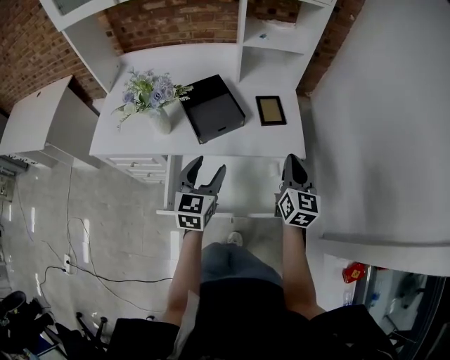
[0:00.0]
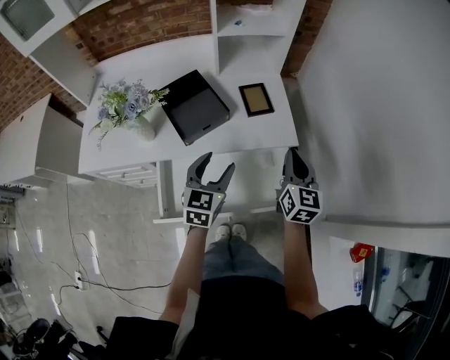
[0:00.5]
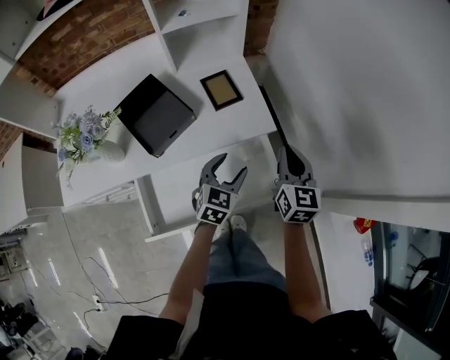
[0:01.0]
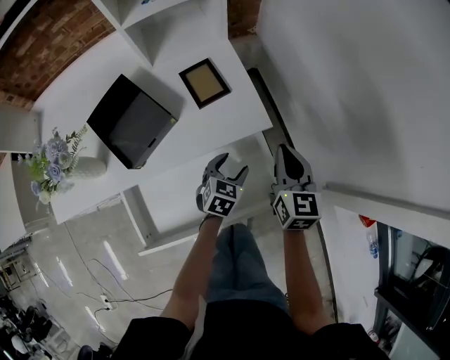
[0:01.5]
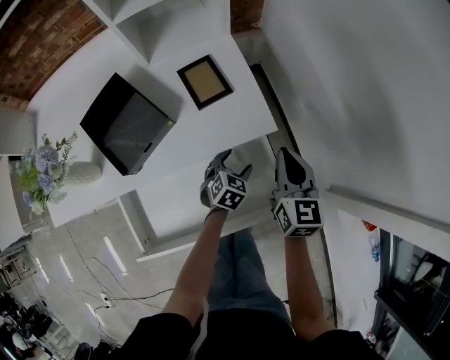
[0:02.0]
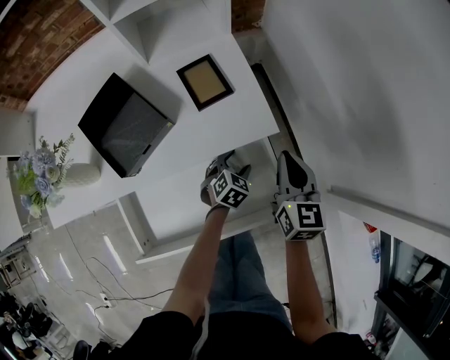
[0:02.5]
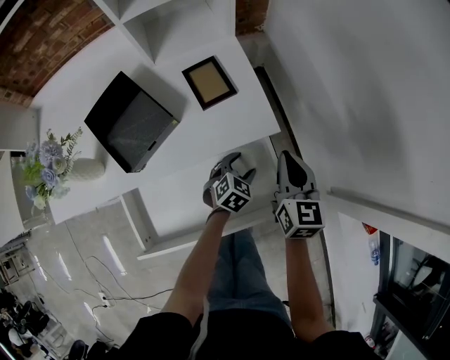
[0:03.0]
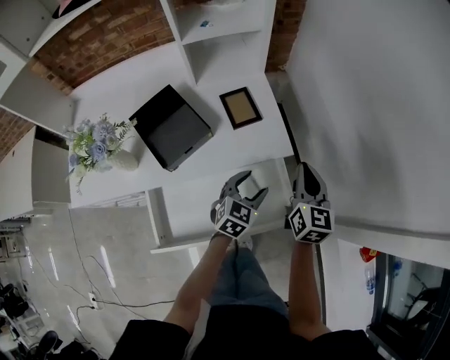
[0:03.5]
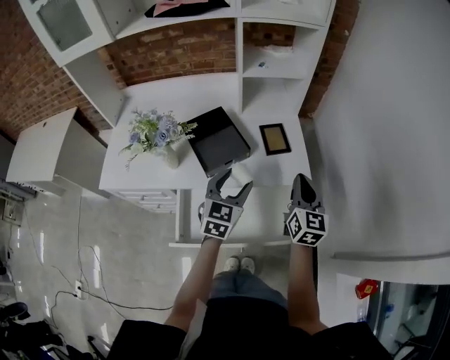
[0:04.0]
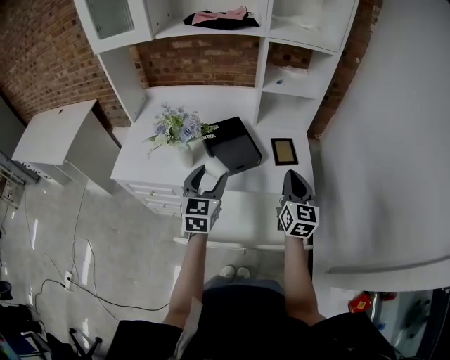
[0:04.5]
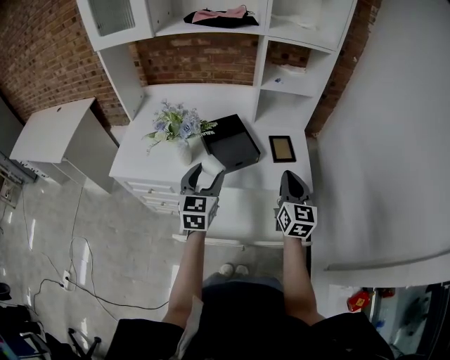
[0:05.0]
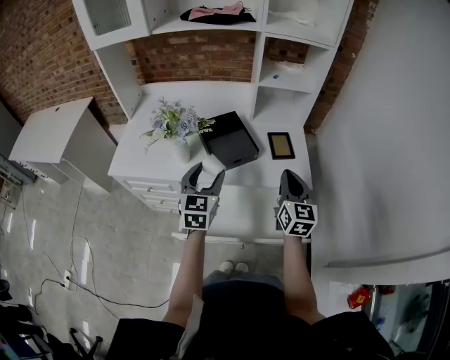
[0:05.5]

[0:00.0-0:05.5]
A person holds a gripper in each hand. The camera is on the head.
0:00.0 to 0:02.0: The right gripper shifts approximately 15 cm downward, to the right and forward. Meanwhile the left gripper heads downward, to the right and forward, covering about 35 cm, and tips its fingers downward by some 30 degrees.
0:02.0 to 0:03.5: The left gripper moves upward, roughly 15 cm. The right gripper heads upward, covering about 5 cm.
0:03.5 to 0:05.5: The left gripper moves roughly 35 cm, and swivels roughly 40 degrees, while the right gripper ends up roughly 20 cm from where it was, and changes its angle by about 20 degrees.

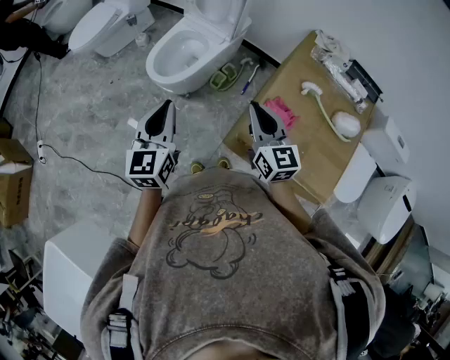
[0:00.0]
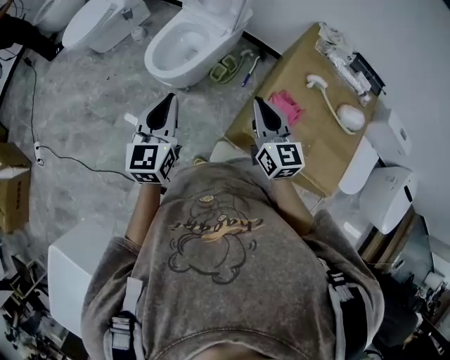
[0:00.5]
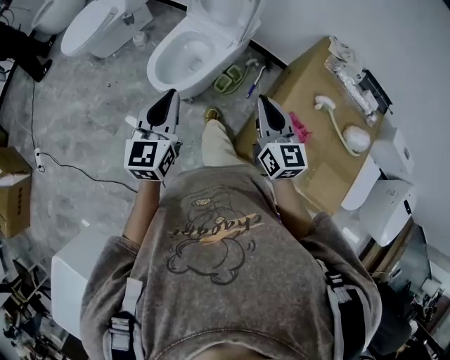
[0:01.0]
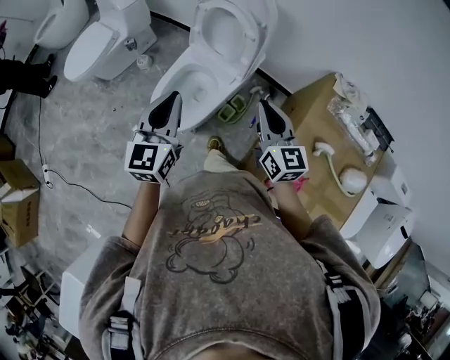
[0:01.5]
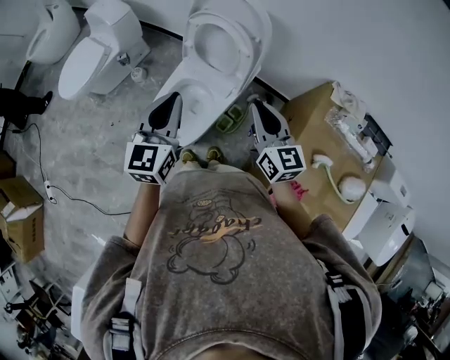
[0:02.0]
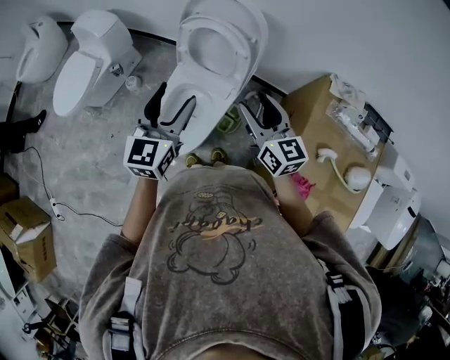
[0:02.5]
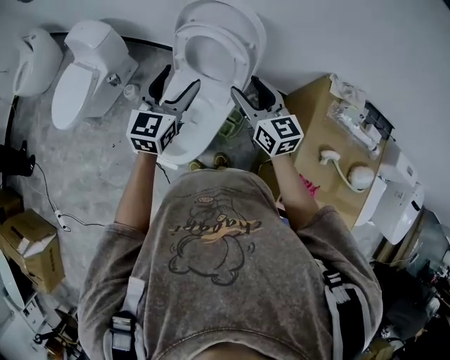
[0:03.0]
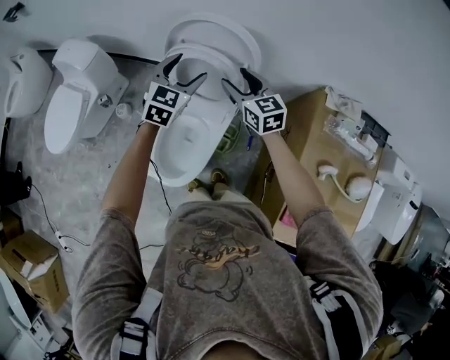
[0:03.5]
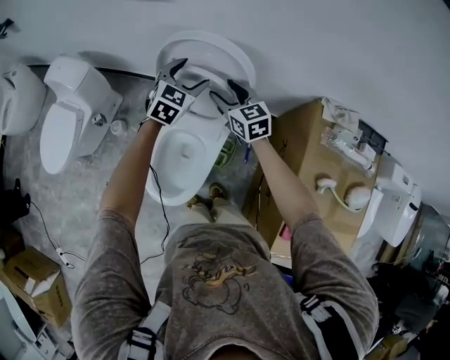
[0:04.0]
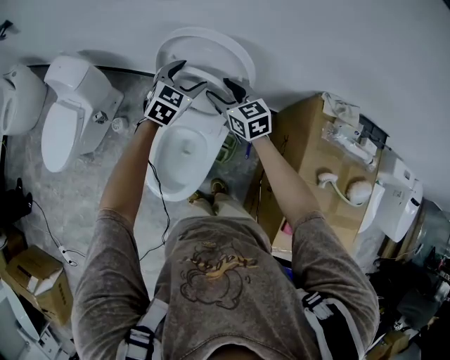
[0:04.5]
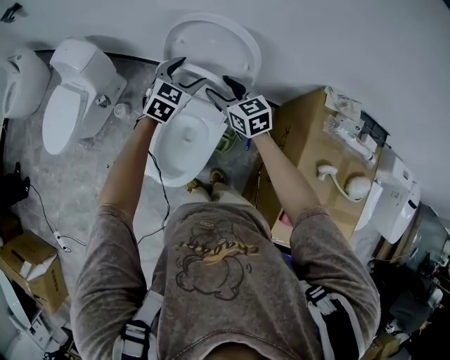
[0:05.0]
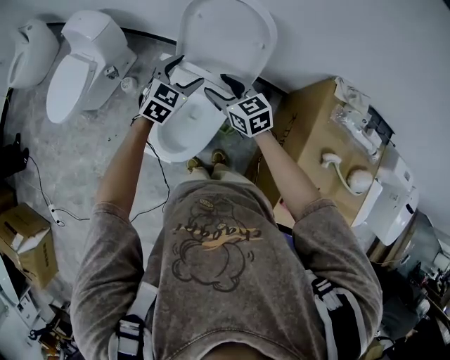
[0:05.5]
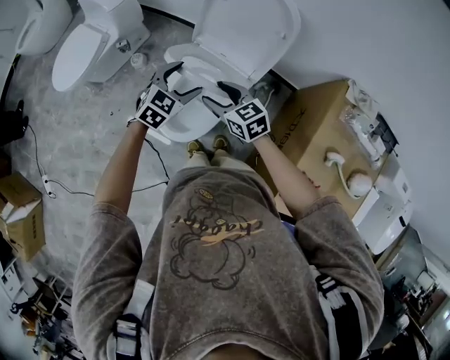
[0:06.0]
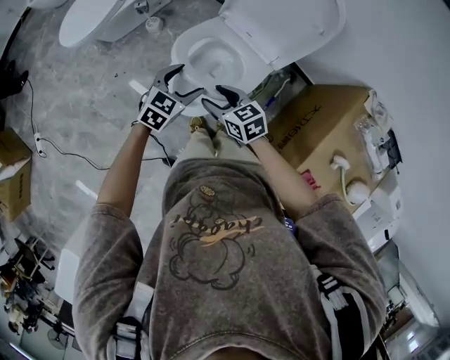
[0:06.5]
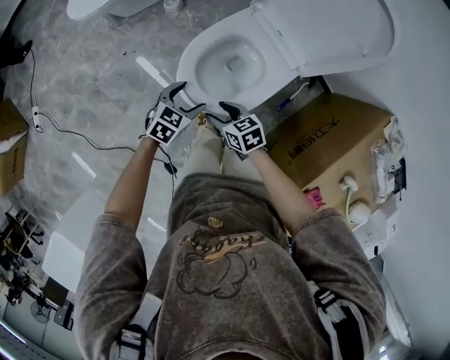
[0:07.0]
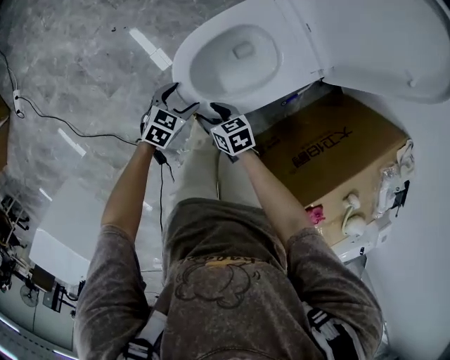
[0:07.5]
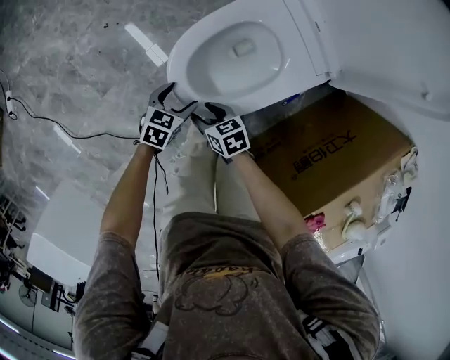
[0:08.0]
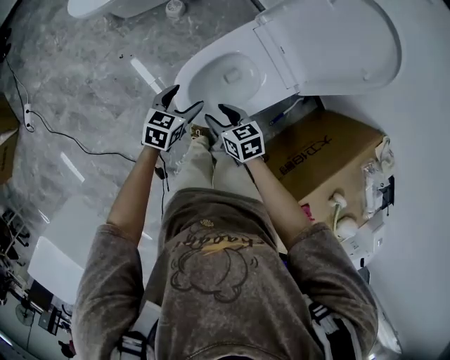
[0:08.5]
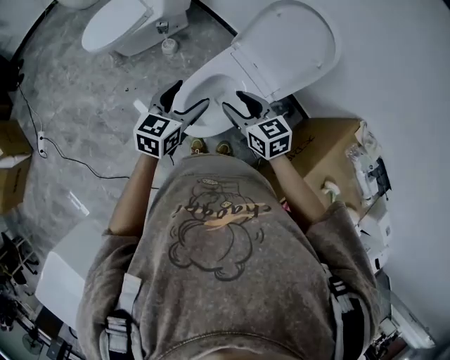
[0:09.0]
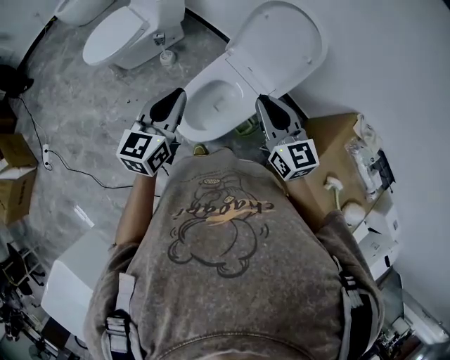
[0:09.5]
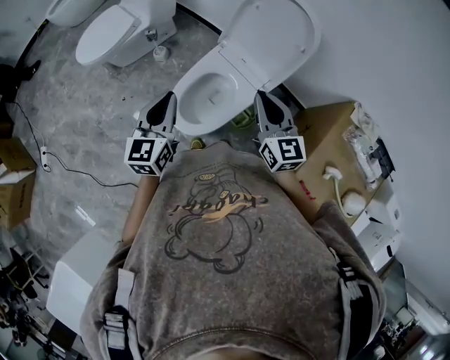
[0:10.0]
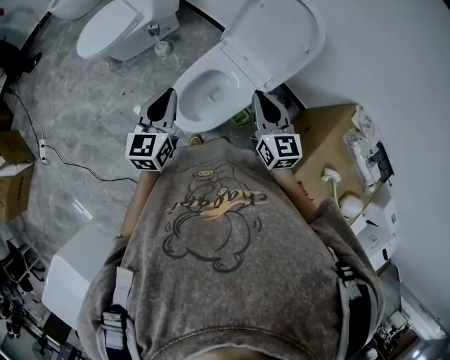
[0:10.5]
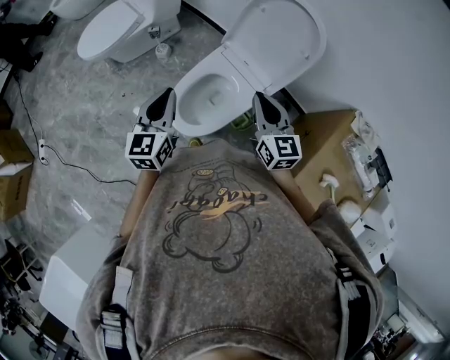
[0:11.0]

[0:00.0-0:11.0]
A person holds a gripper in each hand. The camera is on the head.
0:00.0 to 0:02.0: Both grippers travel together forward, some 40 cm.
0:02.0 to 0:03.5: The two grippers go some 25 cm forward. The right gripper opens up. The left gripper turns by roughly 30 degrees, and opens.
0:03.5 to 0:05.5: The right gripper travels backward and to the left by some 15 cm, while the left gripper travels backward and downward by roughly 10 cm.
0:05.5 to 0:07.5: Both grippers travel together downward, approximately 35 cm. The right gripper turns by some 50 degrees. The left gripper rotates around the line of its fingers by roughly 40 degrees, counterclockwise from behind.
0:07.5 to 0:09.0: Both grippers travel together upward, roughly 40 cm. The left gripper tilts its fingers roughly 30 degrees upward, while the right gripper swivels some 40 degrees.
0:09.0 to 0:11.0: The left gripper closes up. The right gripper travels to the right and upward by some 10 cm, swivels approximately 30 degrees, and closes up.

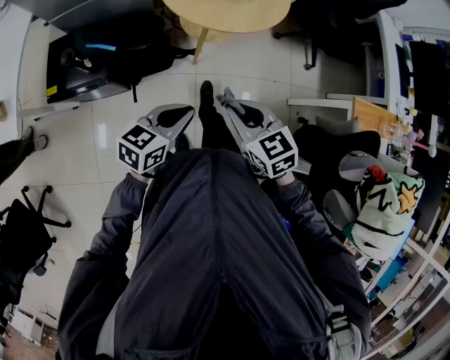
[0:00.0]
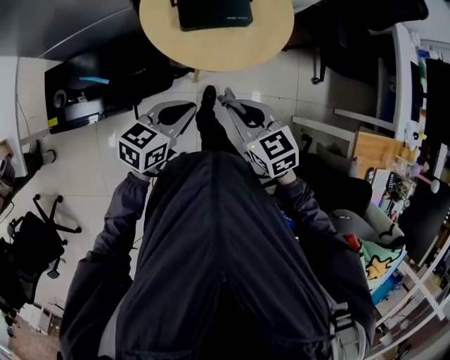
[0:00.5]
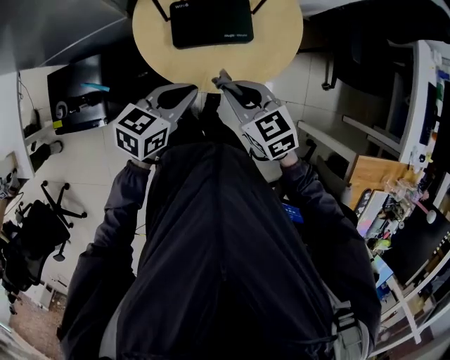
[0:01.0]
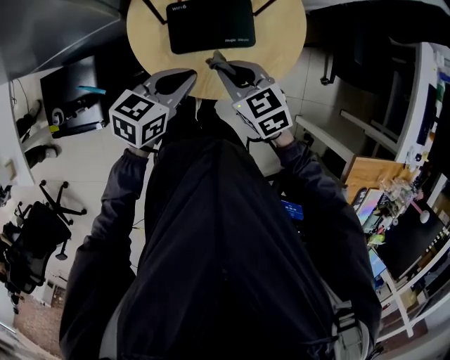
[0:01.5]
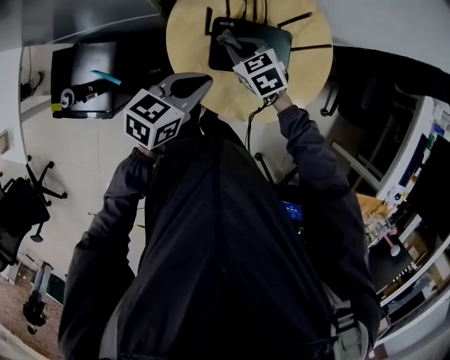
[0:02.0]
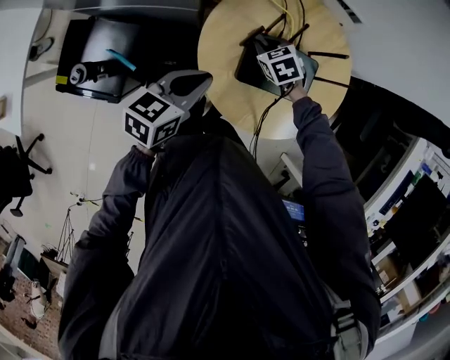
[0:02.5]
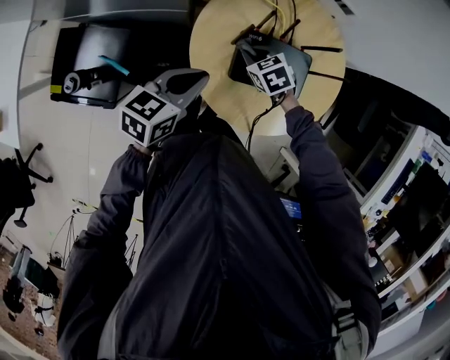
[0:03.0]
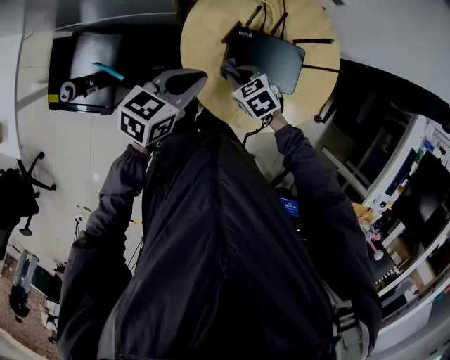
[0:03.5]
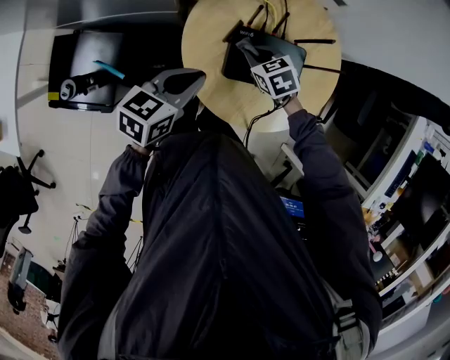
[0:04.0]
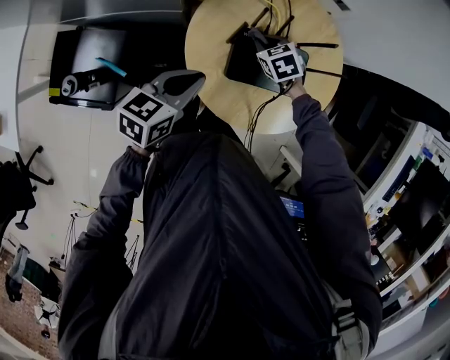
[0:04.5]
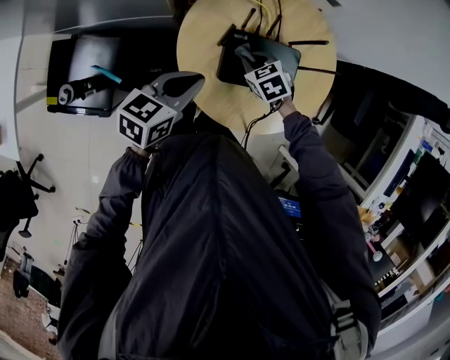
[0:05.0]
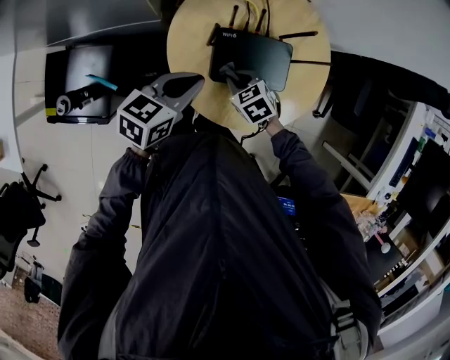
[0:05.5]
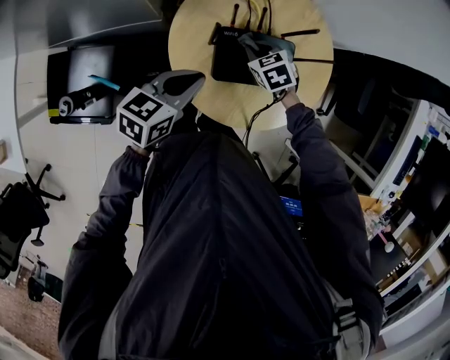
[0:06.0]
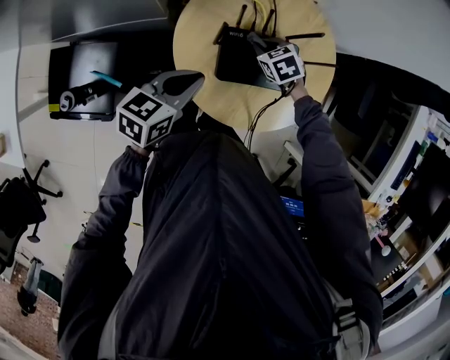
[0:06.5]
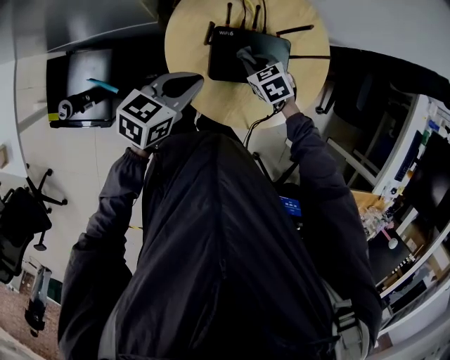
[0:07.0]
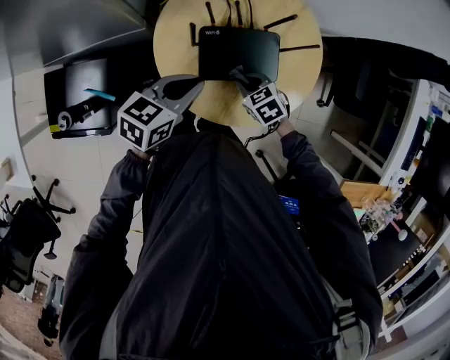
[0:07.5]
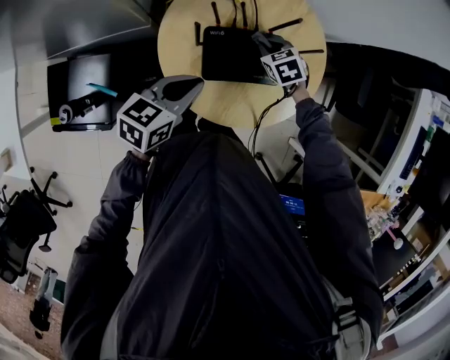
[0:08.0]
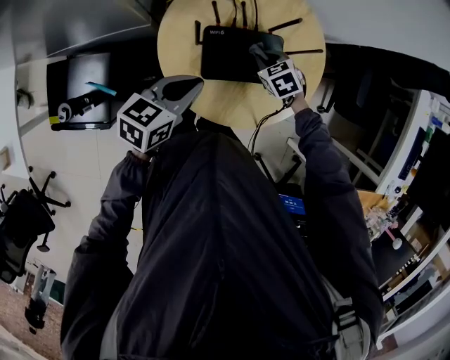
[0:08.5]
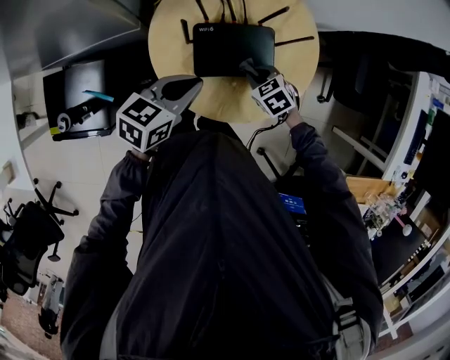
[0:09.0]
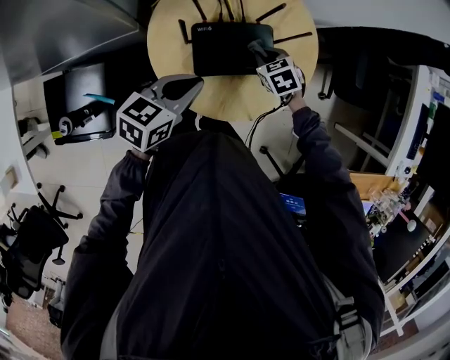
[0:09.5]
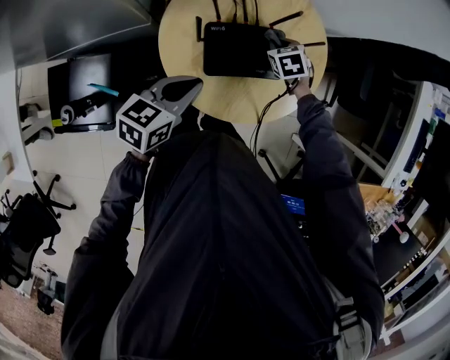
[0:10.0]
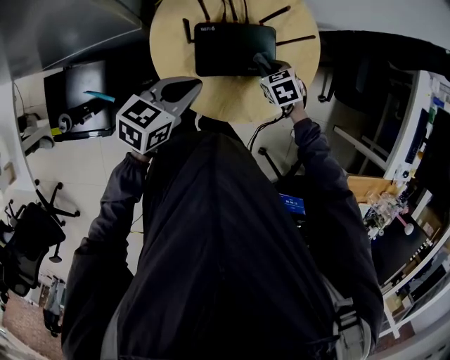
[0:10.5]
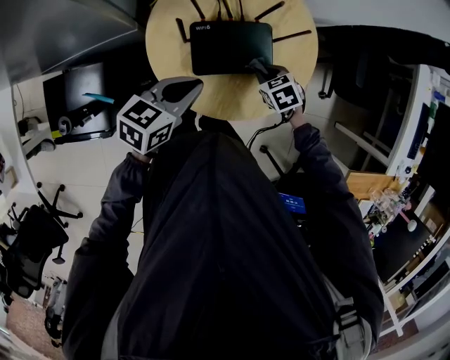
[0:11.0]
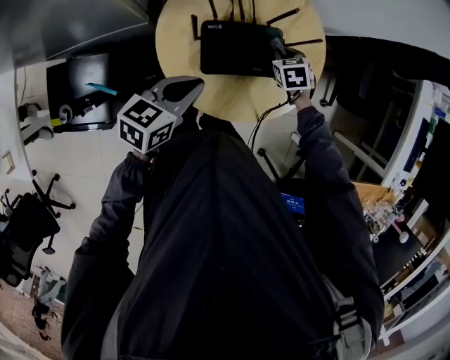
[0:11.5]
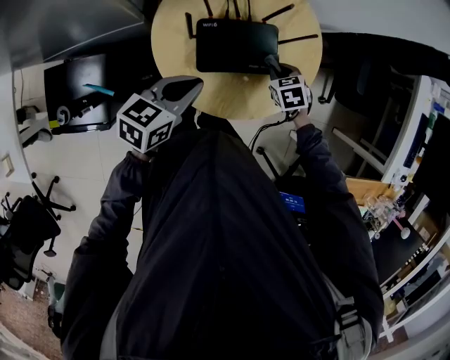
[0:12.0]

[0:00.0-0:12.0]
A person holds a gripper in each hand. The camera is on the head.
0:00.0 to 0:02.0: The two grippers travel together, forward, approximately 40 cm. The right gripper turns by some 20 degrees.
0:02.0 to 0:04.0: The left gripper heads to the left, covering about 5 cm, while the right gripper swings forward and backward, approximately 10 cm each way, with 2 reversals.
0:04.0 to 0:06.0: The right gripper moves forward and backward over some 15 cm, changing direction 2 times.
0:06.0 to 0:08.0: The right gripper shifts some 10 cm to the right, and travels backward and back again, approximately 10 cm each way.
0:08.0 to 0:10.0: The right gripper travels backward and back again, roughly 10 cm each way.
0:10.0 to 0:12.0: The right gripper moves forward and backward over some 10 cm, changing direction 2 times.
